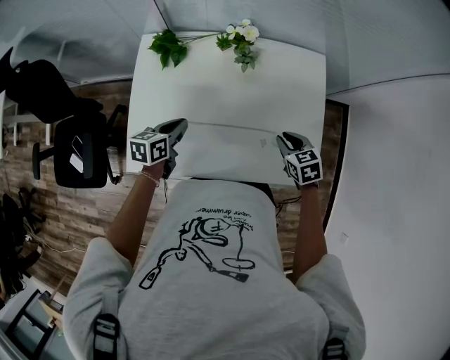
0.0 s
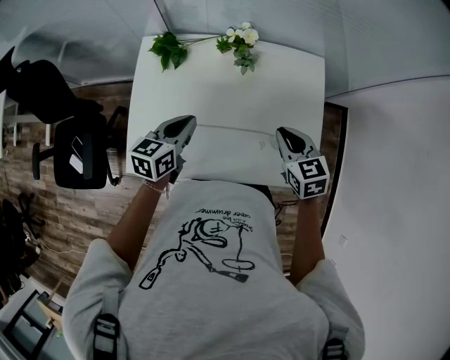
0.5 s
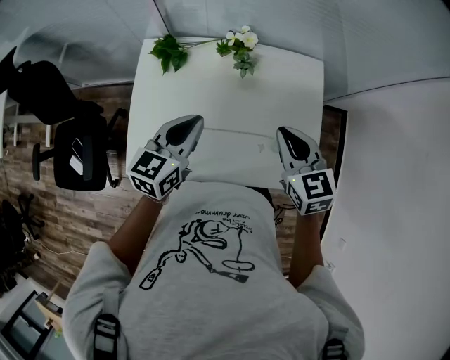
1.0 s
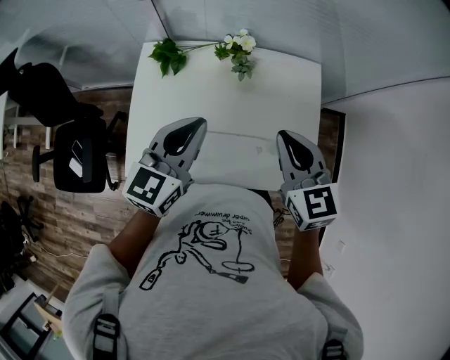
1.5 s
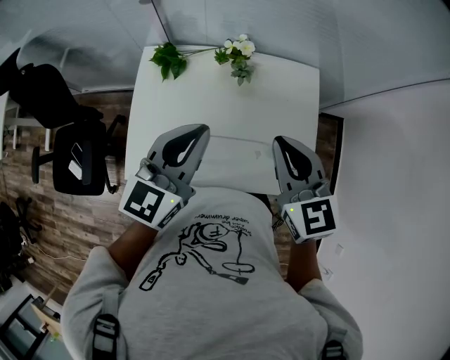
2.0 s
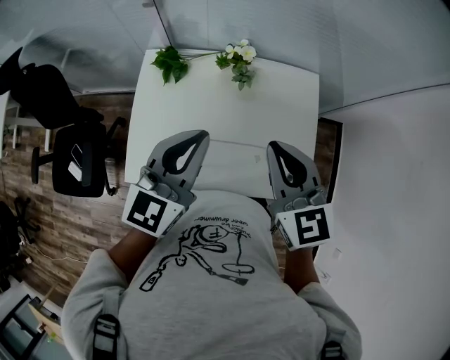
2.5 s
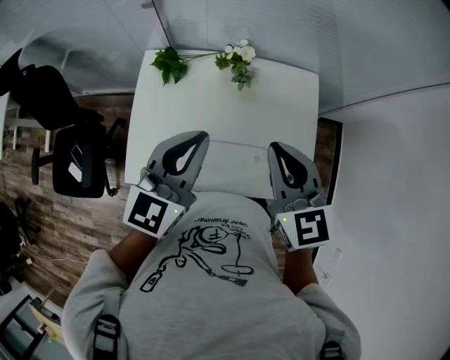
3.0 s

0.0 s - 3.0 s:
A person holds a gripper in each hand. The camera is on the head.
0.0 s - 1.5 s: The two grippers go approximately 25 cm upward. The right gripper rotates about 30 degrees. The left gripper rotates some 40 degrees.
1.5 s - 3.0 s: The left gripper moves approximately 5 cm; the right gripper moves upward, approximately 5 cm.

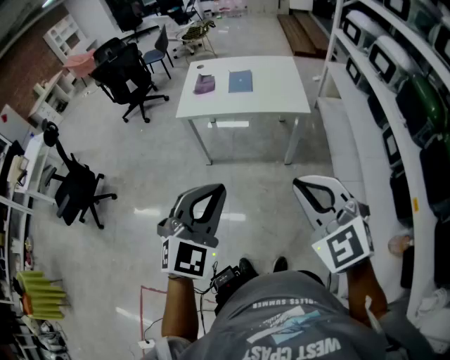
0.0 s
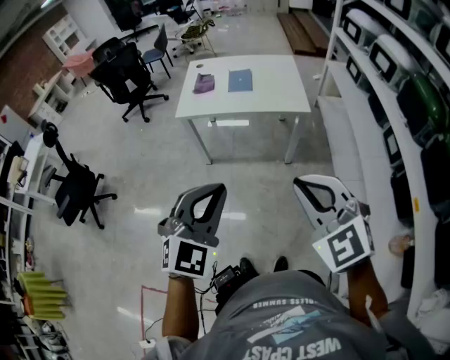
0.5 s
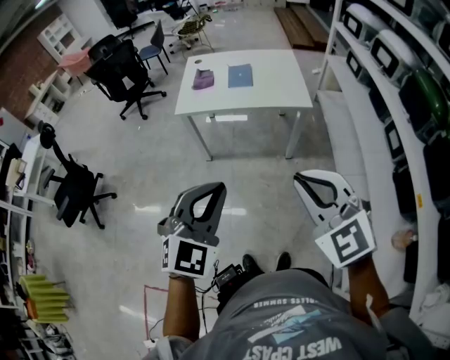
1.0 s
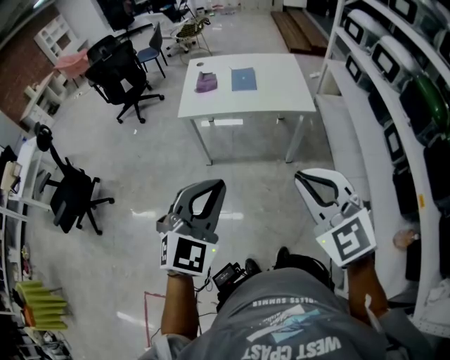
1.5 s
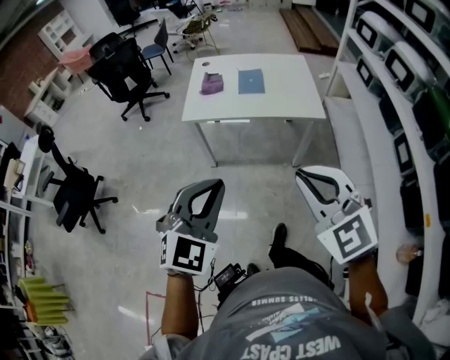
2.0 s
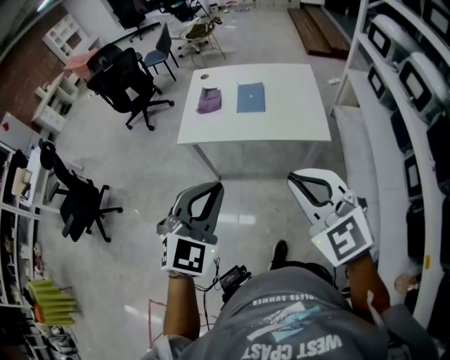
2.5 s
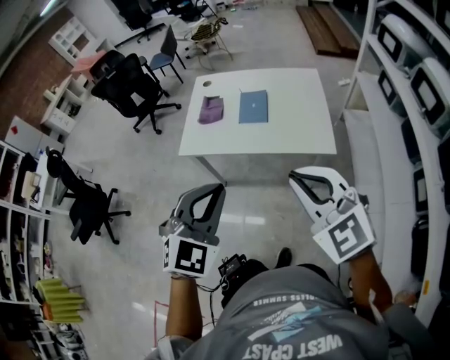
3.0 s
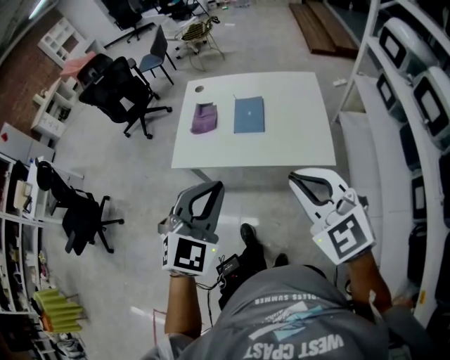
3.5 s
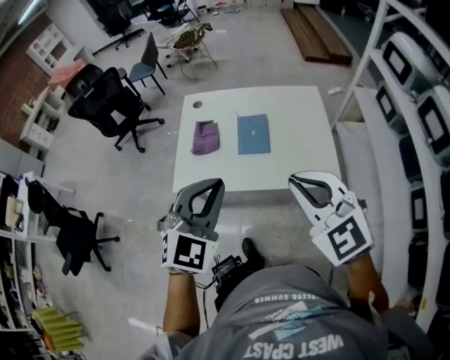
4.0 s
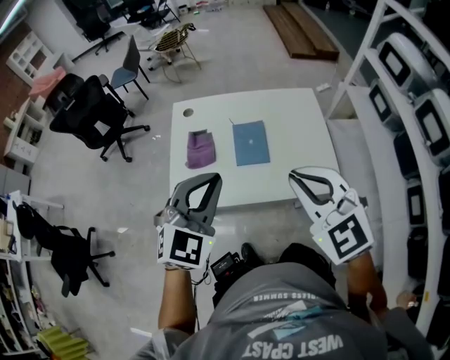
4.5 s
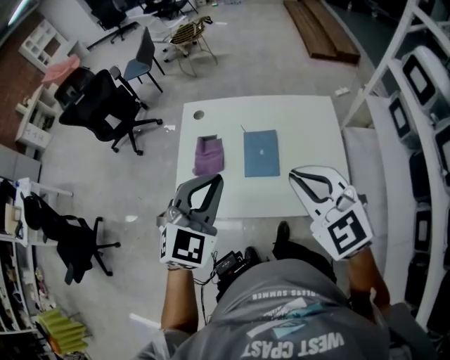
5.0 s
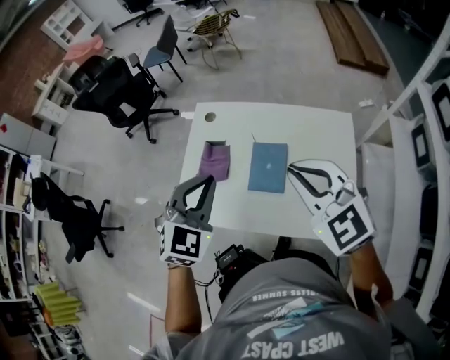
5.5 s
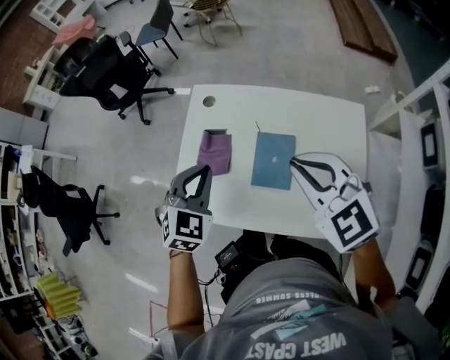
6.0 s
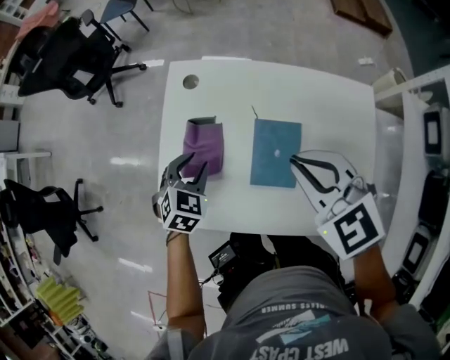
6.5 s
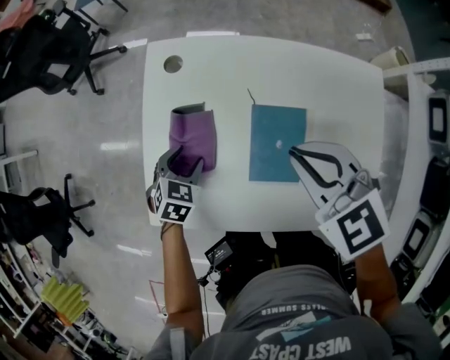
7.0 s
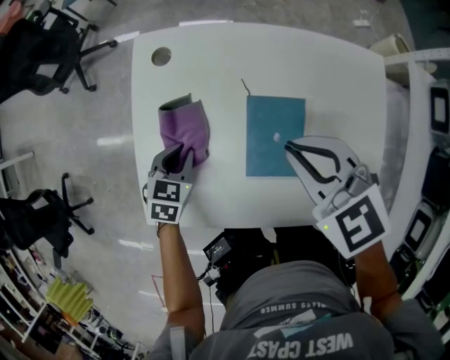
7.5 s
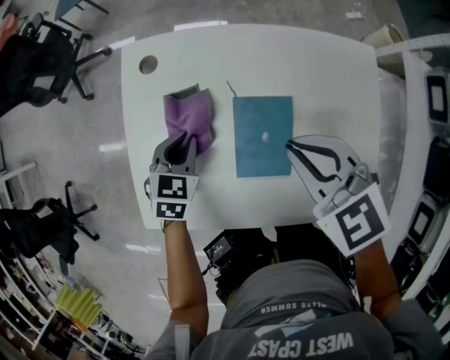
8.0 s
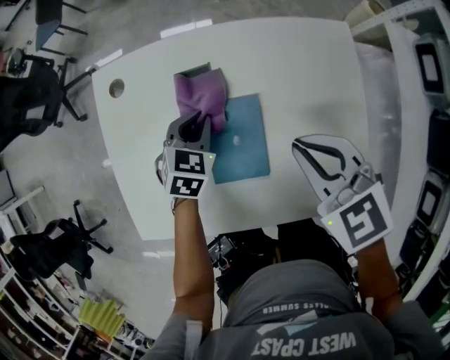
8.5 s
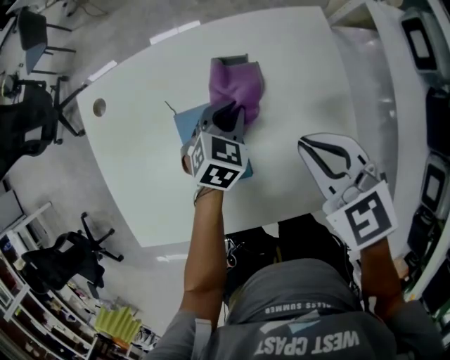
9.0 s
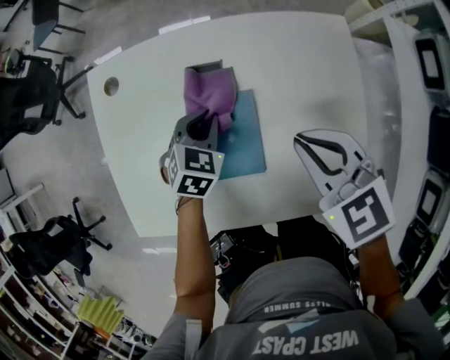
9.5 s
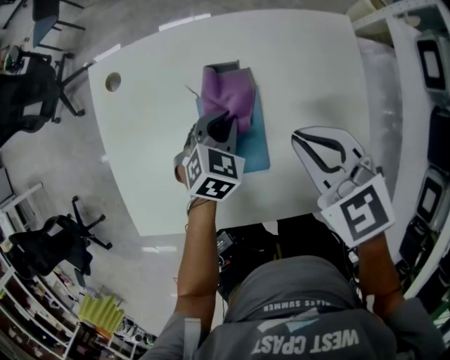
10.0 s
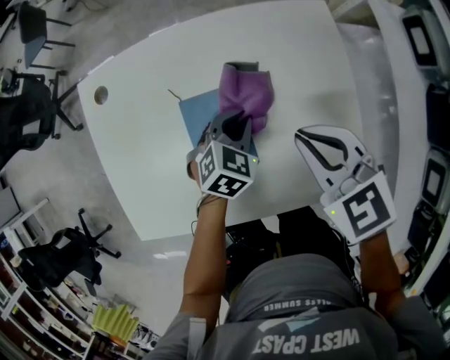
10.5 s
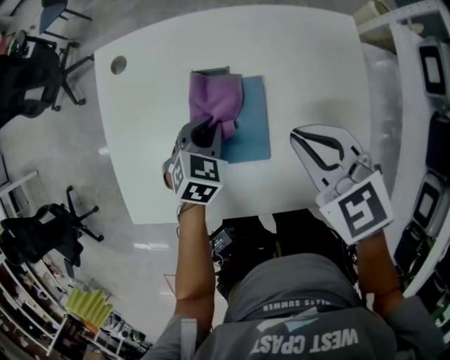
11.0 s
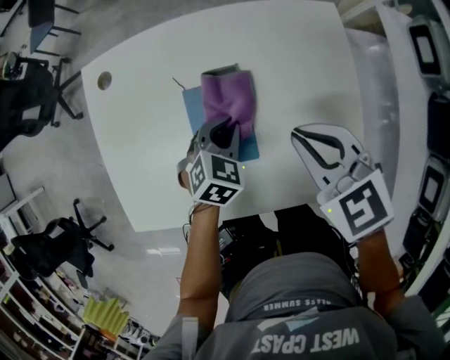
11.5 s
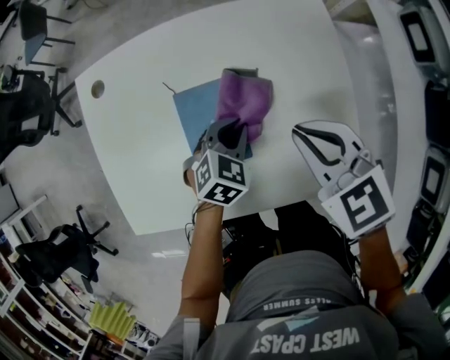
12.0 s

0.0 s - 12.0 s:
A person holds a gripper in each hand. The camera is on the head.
0.0 s - 2.0 s: Both grippers travel together forward and to the left, approximately 10 cm.
2.0 s - 4.0 s: Both grippers travel together forward, about 40 cm.
4.0 s - 6.0 s: The right gripper goes about 30 cm forward. The left gripper shifts some 30 cm forward and downward, and changes its angle by about 30 degrees.
6.0 s - 8.0 s: The grippers both shift downward and forward by roughly 25 cm. The left gripper swivels some 20 degrees, and opens and closes again. The right gripper swivels about 20 degrees.
8.0 s - 10.0 s: The left gripper travels to the right by some 20 cm, and swivels approximately 20 degrees, while the right gripper goes roughly 10 cm to the right.
10.0 s - 12.0 s: The left gripper swings left and right, some 10 cm each way, with 2 reversals. The right gripper goes left and right, approximately 5 cm each way, reversing 2 times.

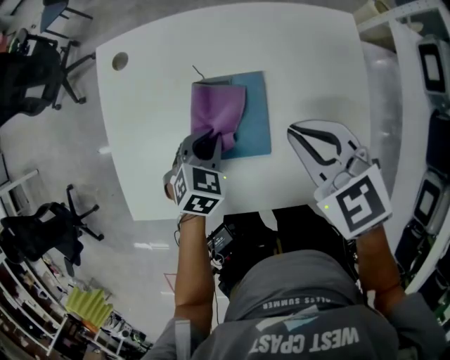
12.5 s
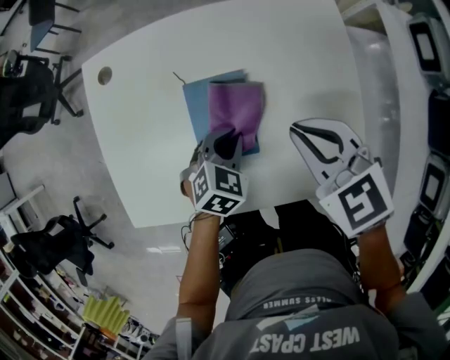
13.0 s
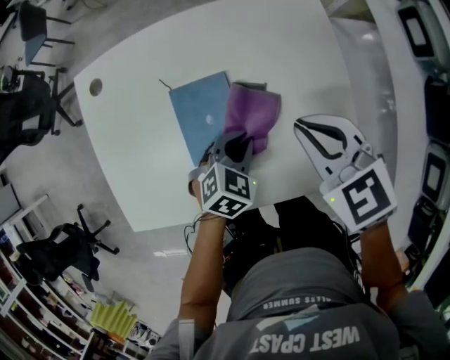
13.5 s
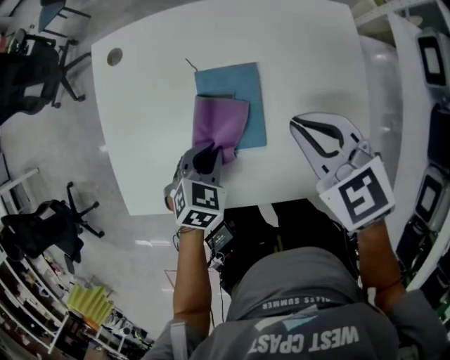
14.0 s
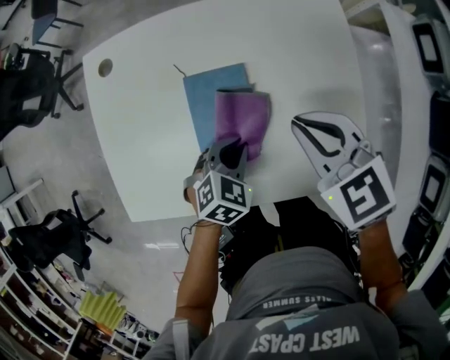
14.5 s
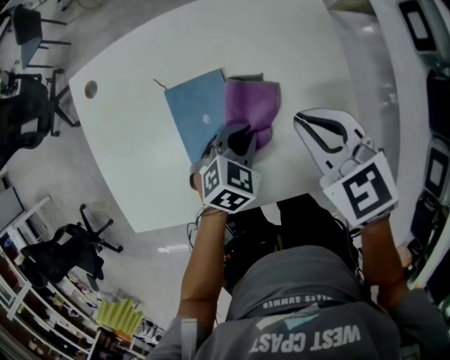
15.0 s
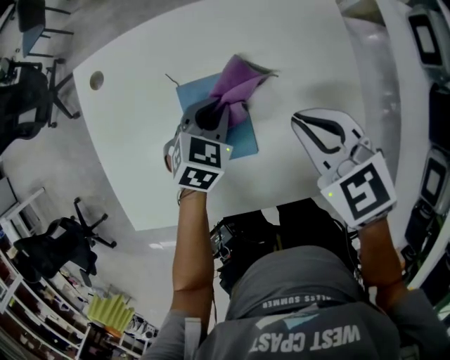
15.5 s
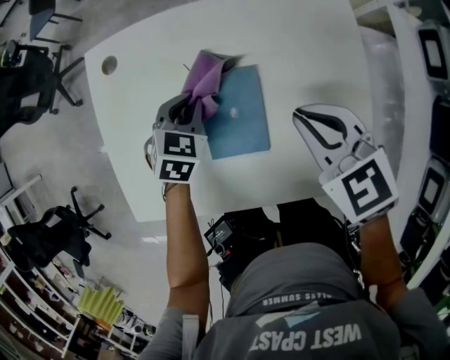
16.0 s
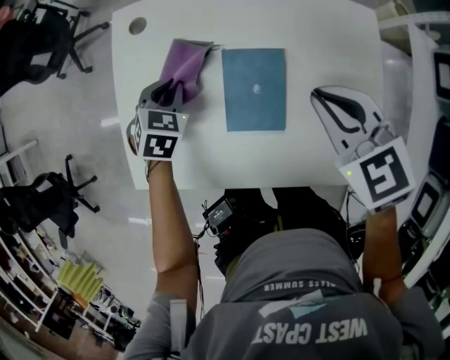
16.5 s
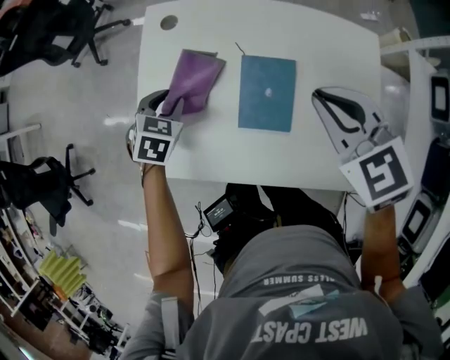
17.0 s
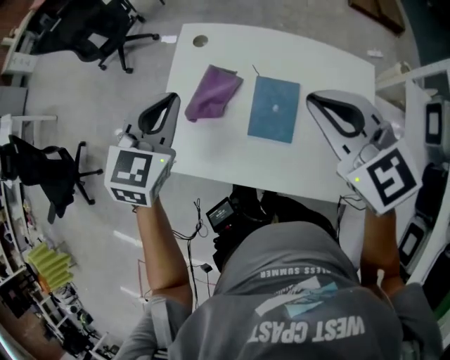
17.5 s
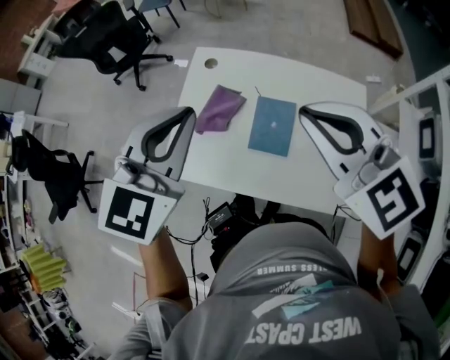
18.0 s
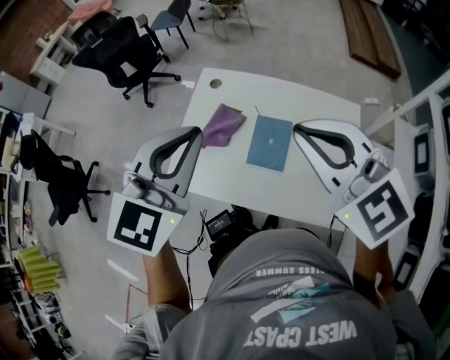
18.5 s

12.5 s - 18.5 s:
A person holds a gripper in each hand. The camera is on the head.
12.5 s - 14.5 s: The left gripper moves left and right over approximately 15 cm, changing direction 2 times.
14.5 s - 16.5 s: The right gripper moves roughly 5 cm. The left gripper moves roughly 25 cm, and rotates roughly 20 degrees.
16.5 s - 18.5 s: The right gripper travels upward by approximately 30 cm, and changes its angle by some 40 degrees. Meanwhile the left gripper travels upward and backward by approximately 50 cm, tips its fingers upward by approximately 40 degrees, and opens and closes again.

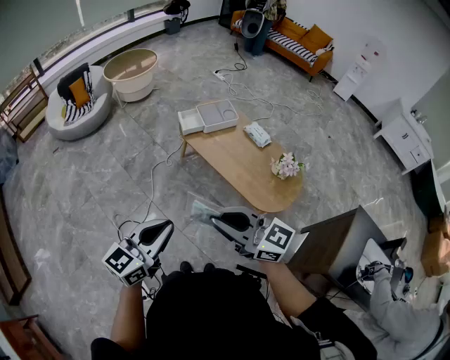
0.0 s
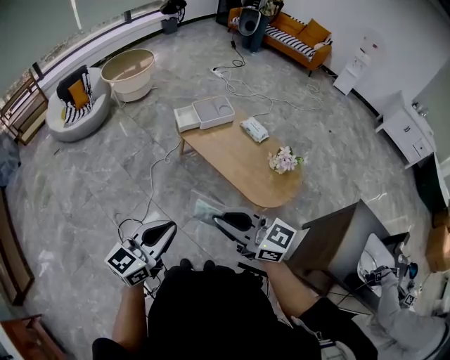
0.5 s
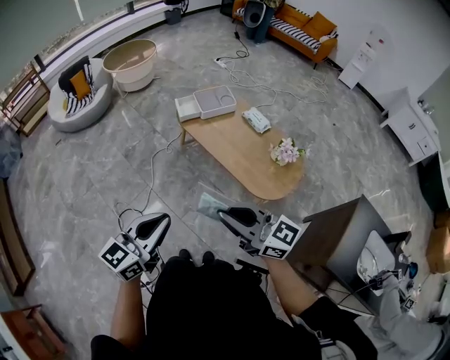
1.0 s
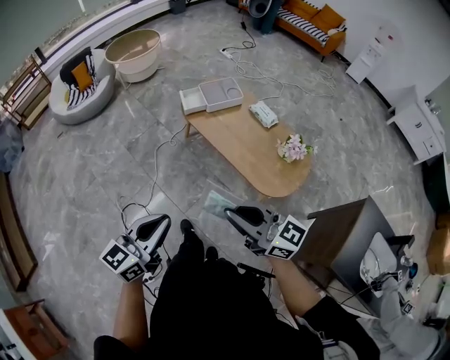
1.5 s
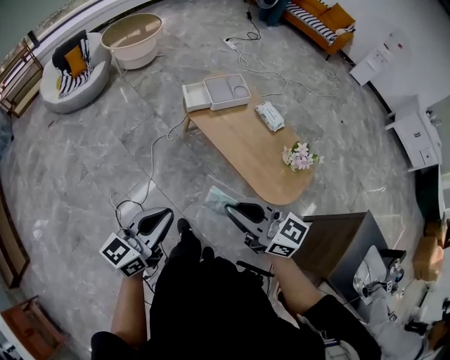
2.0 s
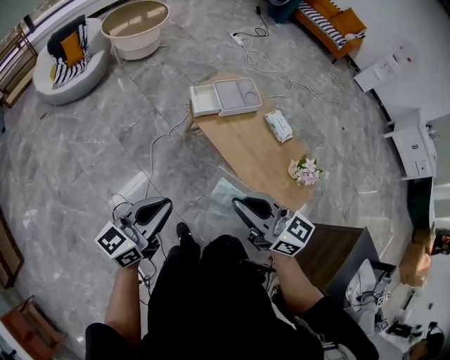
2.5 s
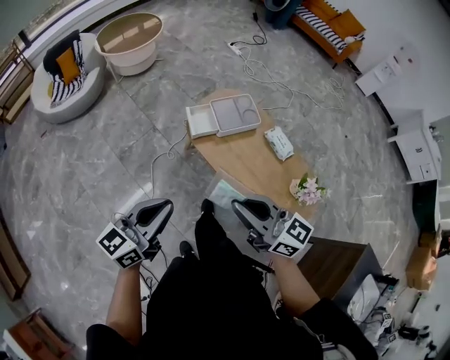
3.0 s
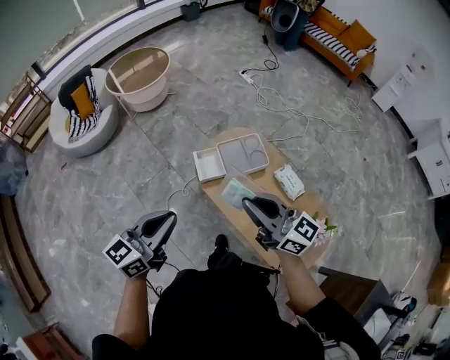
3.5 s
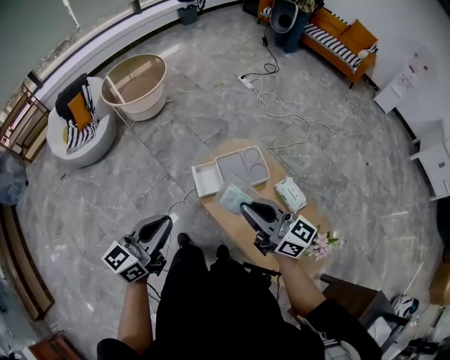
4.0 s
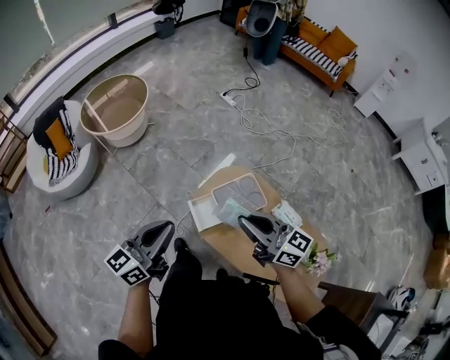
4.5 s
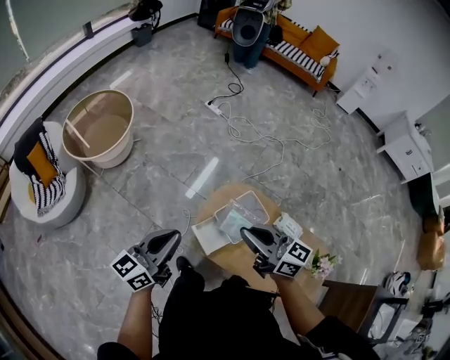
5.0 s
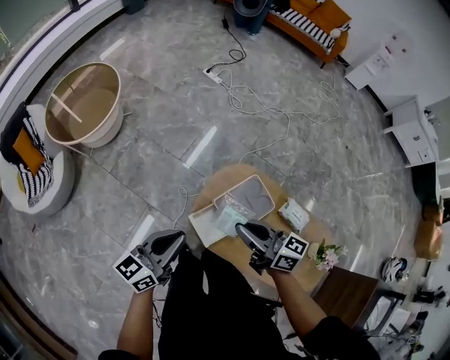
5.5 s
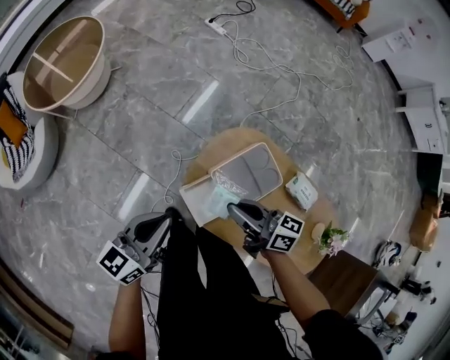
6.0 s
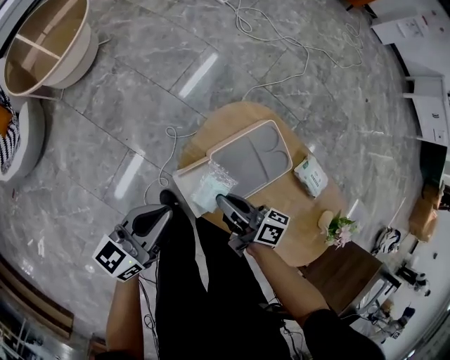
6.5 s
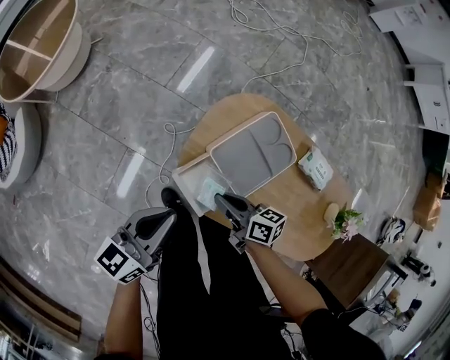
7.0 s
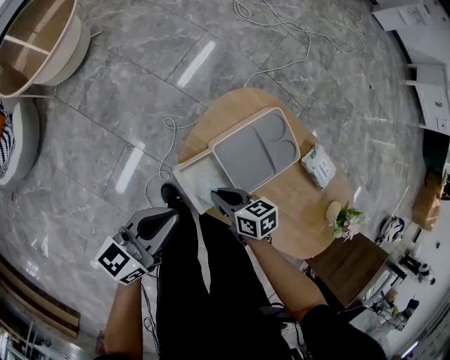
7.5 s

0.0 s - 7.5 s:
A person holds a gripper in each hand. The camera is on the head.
0.0 s - 2.0 s: The left gripper heads forward, covering about 10 cm; the right gripper is displaced forward and downward by roughly 10 cm.
2.0 s - 4.0 s: The two grippers travel together, forward, approximately 50 cm.
4.0 s - 5.5 s: The left gripper shifts about 35 cm forward and downward, and changes its angle by some 20 degrees; the right gripper goes about 30 cm forward, downward and to the left, and rotates approximately 20 degrees.
5.5 s - 7.5 s: The right gripper shifts about 35 cm downward, and tilts its fingers about 40 degrees downward; the left gripper moves downward, roughly 20 cm.
